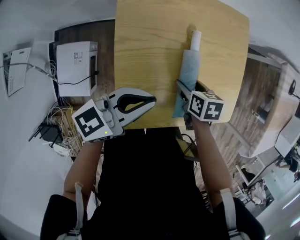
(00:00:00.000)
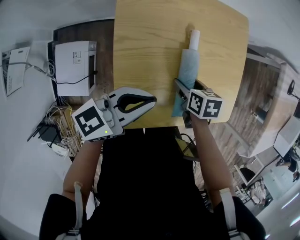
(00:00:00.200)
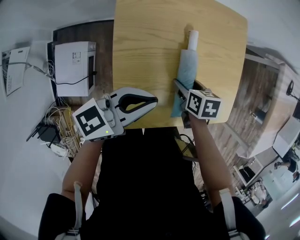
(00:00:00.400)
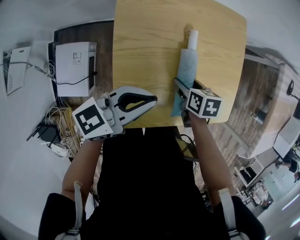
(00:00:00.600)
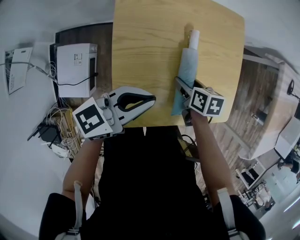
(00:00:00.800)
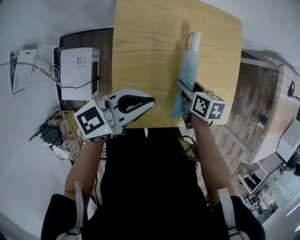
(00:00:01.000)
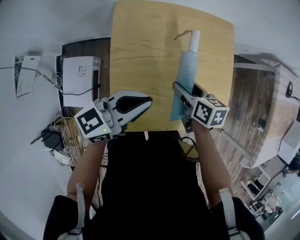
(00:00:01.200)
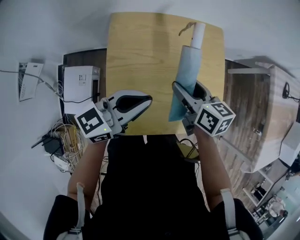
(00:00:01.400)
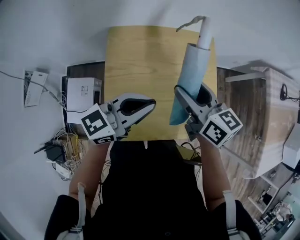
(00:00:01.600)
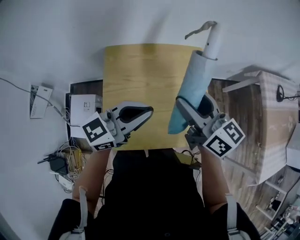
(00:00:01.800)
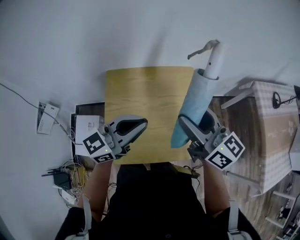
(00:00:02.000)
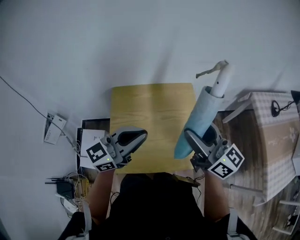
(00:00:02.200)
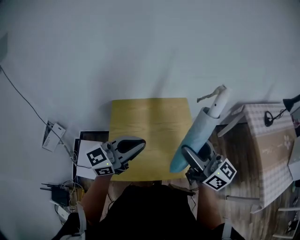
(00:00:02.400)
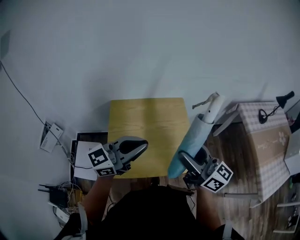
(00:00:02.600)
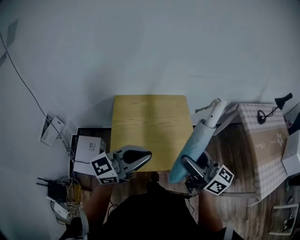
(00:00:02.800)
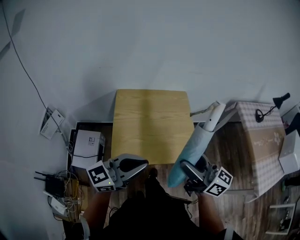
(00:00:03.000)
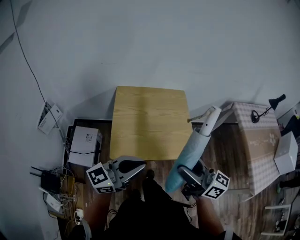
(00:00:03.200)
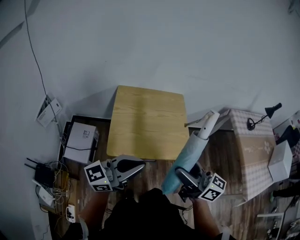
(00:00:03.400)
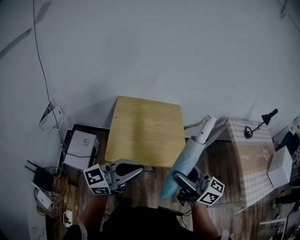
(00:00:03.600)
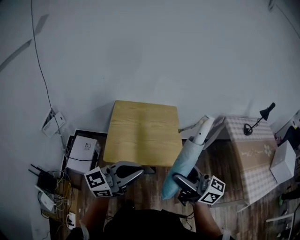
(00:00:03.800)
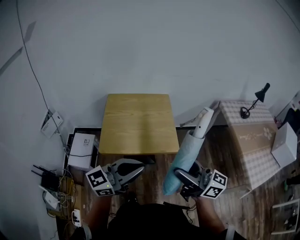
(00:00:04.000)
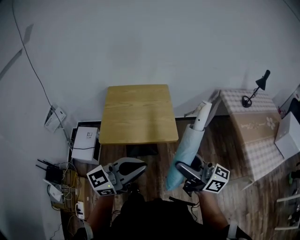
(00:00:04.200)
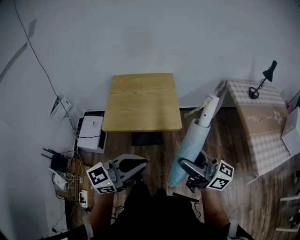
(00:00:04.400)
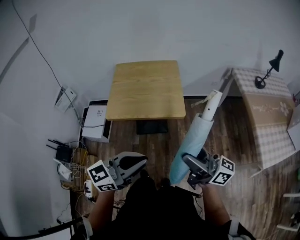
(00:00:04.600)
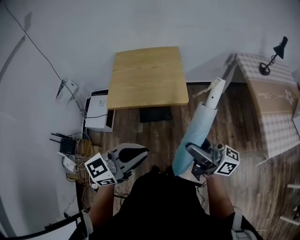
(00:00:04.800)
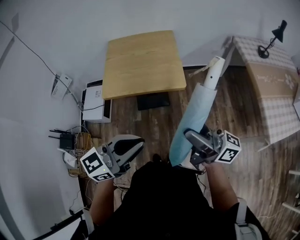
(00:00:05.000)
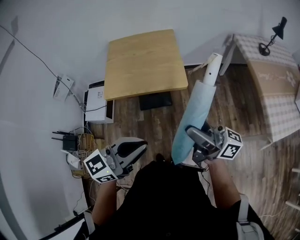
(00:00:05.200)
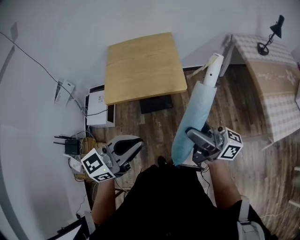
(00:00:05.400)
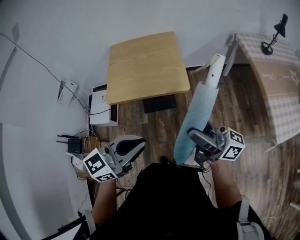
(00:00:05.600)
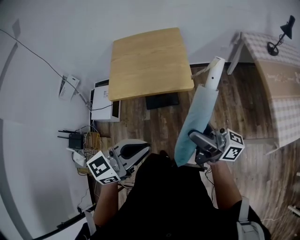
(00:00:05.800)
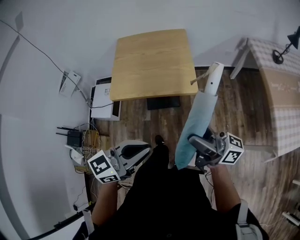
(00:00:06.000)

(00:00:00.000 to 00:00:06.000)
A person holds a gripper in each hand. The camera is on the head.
00:00:00.000 - 00:00:01.600: The right gripper heads upward, covering some 25 cm, and tips its fingers upward by some 50 degrees. The left gripper travels upward and to the right by approximately 15 cm.
00:00:01.600 - 00:00:03.000: The right gripper is displaced backward, upward and to the right by about 35 cm, and rotates some 30 degrees. The left gripper shifts some 25 cm backward and upward.
00:00:03.000 - 00:00:04.400: The grippers both shift backward and to the right by approximately 30 cm.
00:00:04.400 - 00:00:06.000: The two grippers go approximately 5 cm downward. The right gripper rotates roughly 20 degrees.

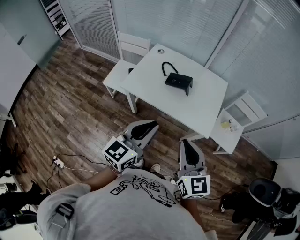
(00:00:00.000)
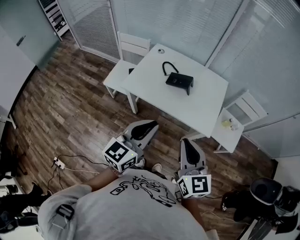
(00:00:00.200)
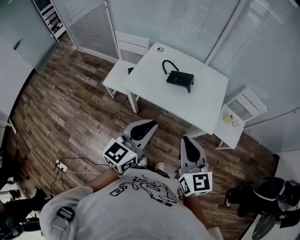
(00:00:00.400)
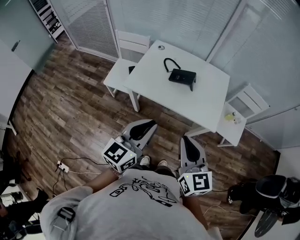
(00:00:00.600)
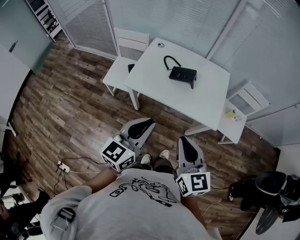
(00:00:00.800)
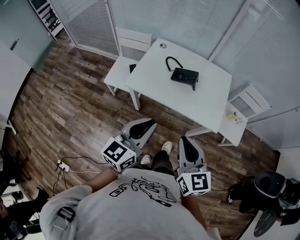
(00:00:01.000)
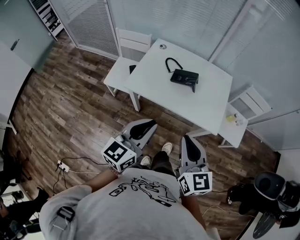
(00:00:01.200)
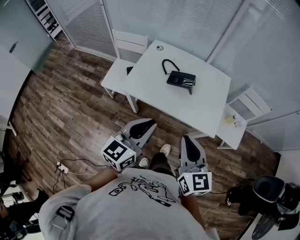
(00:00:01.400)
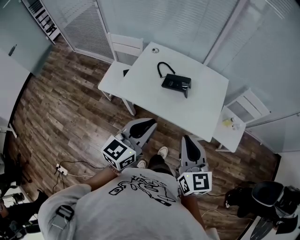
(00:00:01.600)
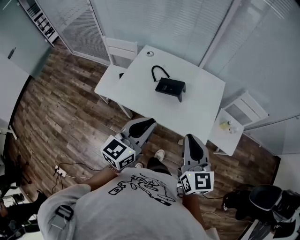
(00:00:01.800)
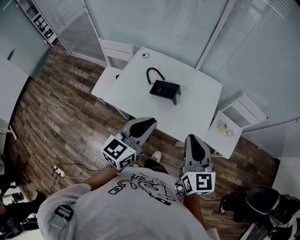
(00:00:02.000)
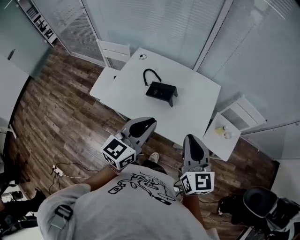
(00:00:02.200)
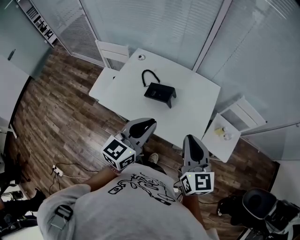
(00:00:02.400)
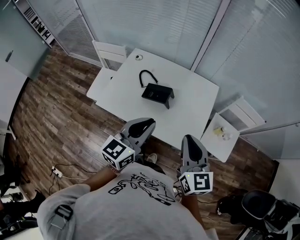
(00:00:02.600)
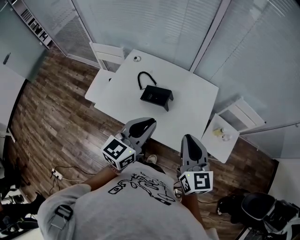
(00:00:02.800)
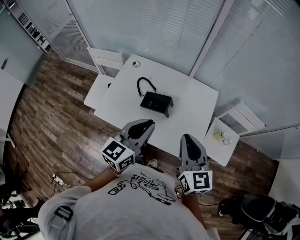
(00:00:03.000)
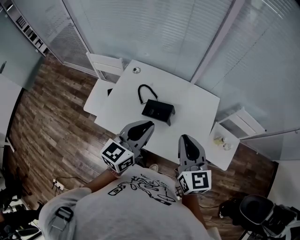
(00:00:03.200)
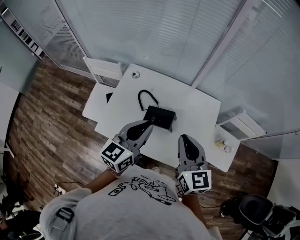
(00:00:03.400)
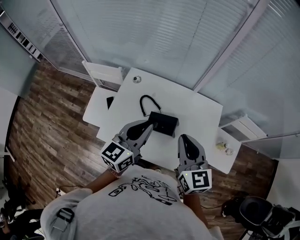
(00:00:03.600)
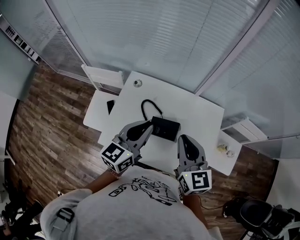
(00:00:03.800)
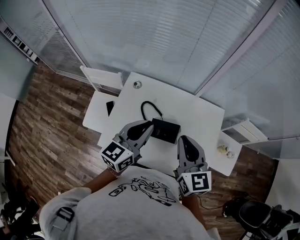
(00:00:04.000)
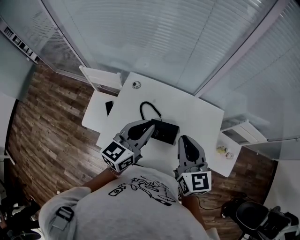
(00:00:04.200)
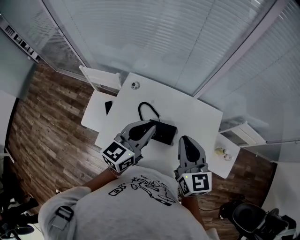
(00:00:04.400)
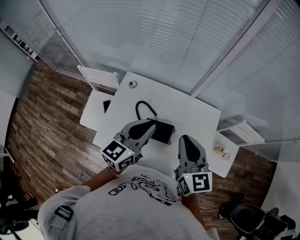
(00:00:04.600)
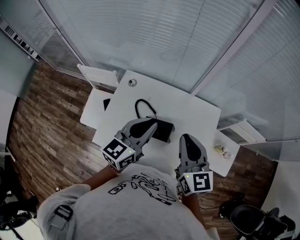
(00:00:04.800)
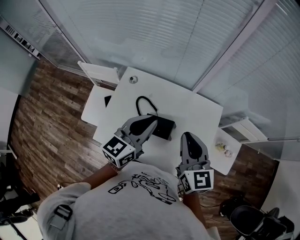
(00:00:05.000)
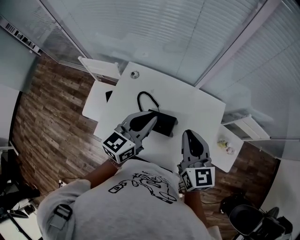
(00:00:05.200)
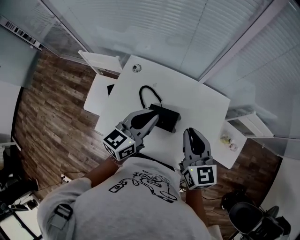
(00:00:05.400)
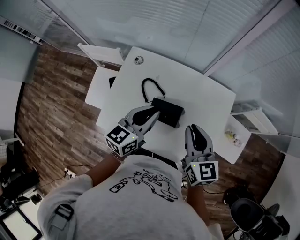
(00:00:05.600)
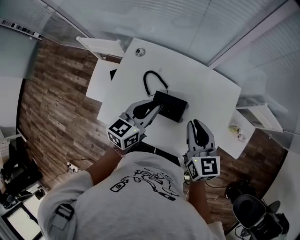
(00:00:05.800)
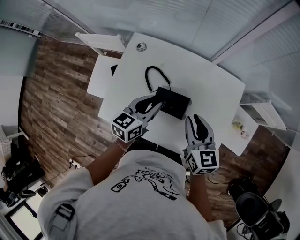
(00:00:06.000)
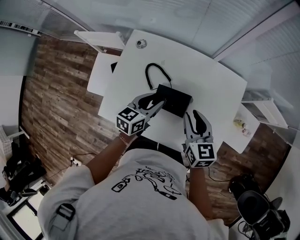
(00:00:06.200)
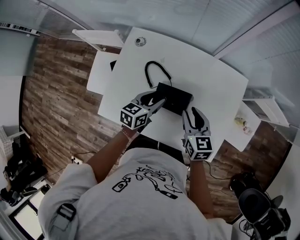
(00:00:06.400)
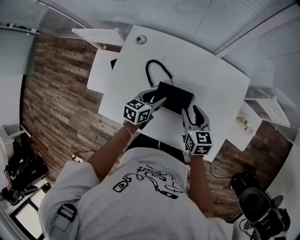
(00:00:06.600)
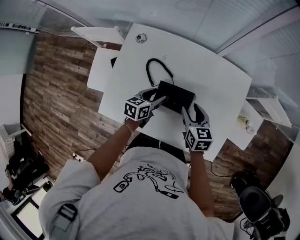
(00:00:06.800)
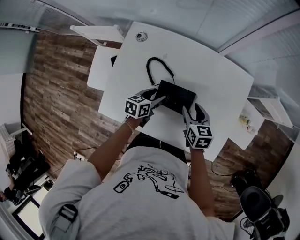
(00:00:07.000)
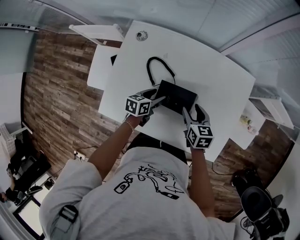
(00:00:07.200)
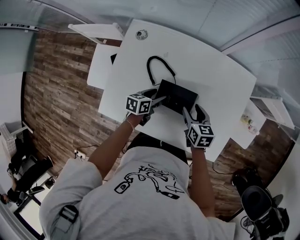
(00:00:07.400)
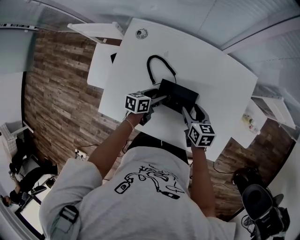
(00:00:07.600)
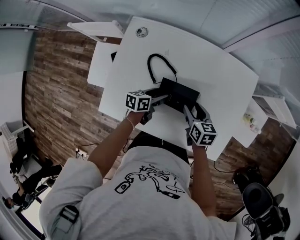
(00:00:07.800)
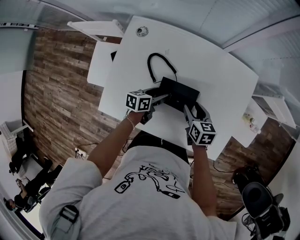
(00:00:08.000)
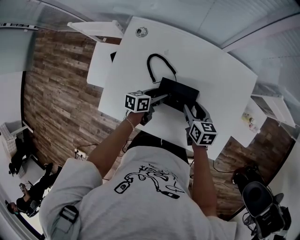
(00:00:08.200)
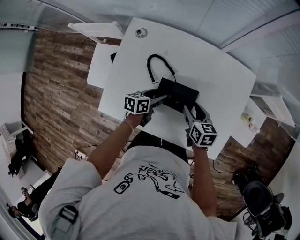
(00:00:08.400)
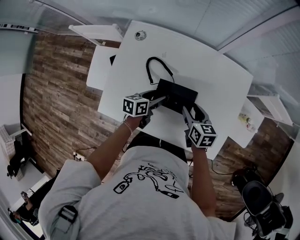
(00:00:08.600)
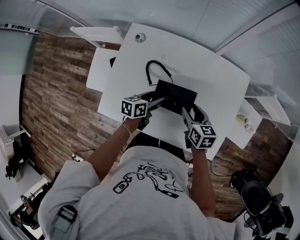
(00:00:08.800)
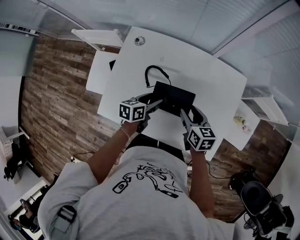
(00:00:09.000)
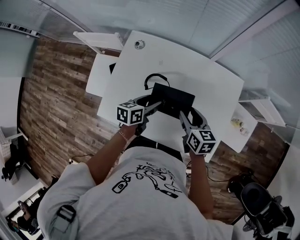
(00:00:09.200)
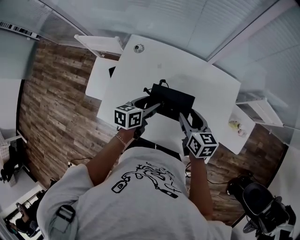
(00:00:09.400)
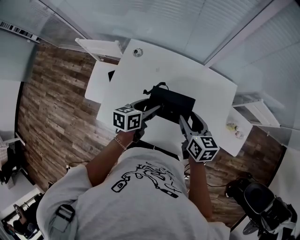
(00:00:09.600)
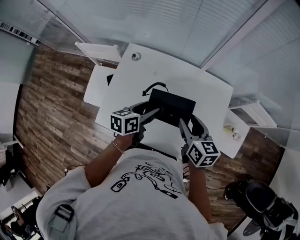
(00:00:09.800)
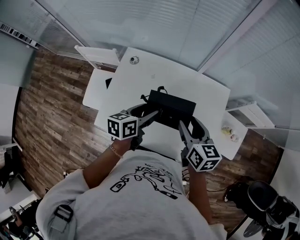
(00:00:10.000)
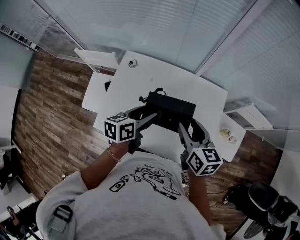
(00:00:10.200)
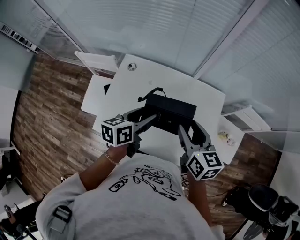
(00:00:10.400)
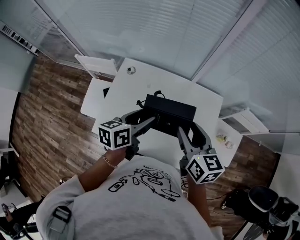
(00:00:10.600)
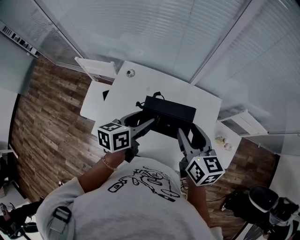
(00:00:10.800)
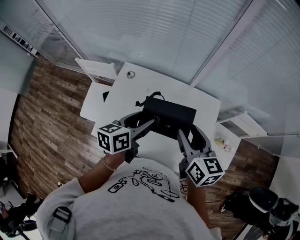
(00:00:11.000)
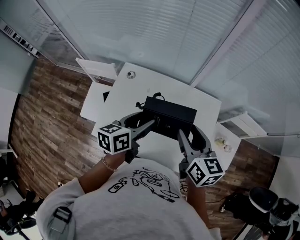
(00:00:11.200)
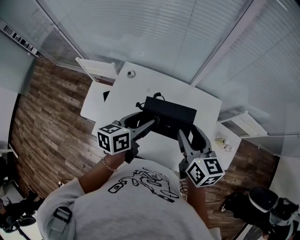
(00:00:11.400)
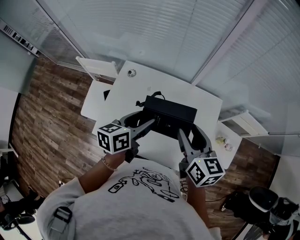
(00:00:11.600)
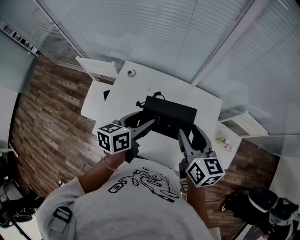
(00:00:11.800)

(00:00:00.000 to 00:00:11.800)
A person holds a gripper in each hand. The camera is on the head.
00:00:00.000 - 00:00:01.400: The right gripper moves forward, some 5 cm. Meanwhile the left gripper moves forward and to the left, some 5 cm.
00:00:01.400 - 00:00:03.000: Both grippers move forward and to the right, about 25 cm.
00:00:03.000 - 00:00:04.400: Both grippers move forward and to the left, approximately 20 cm.
00:00:04.400 - 00:00:06.000: The two grippers go roughly 15 cm downward.
00:00:06.000 - 00:00:07.400: The grippers both shift downward by approximately 20 cm. The left gripper turns by approximately 30 degrees, and opens its fingers, while the right gripper turns by approximately 20 degrees, and opens.
00:00:07.400 - 00:00:08.800: Both grippers move upward, roughly 5 cm.
00:00:08.800 - 00:00:10.400: Both grippers travel together upward, roughly 25 cm.
00:00:10.400 - 00:00:11.800: The grippers make only small movements.

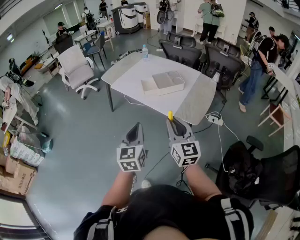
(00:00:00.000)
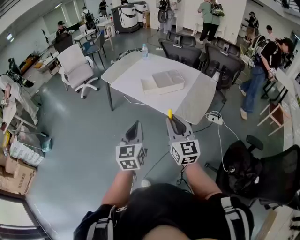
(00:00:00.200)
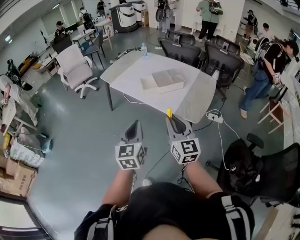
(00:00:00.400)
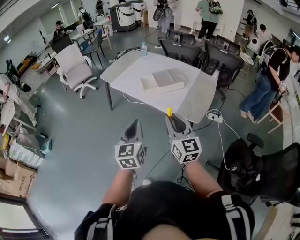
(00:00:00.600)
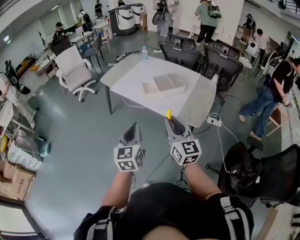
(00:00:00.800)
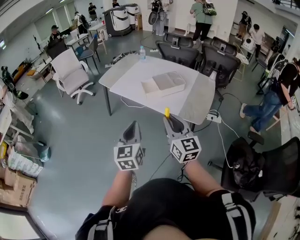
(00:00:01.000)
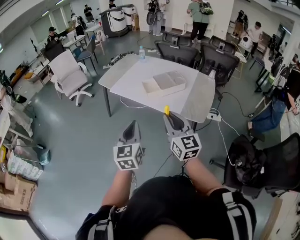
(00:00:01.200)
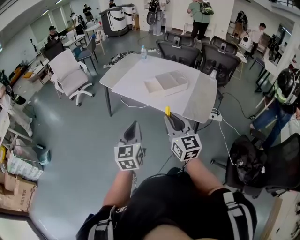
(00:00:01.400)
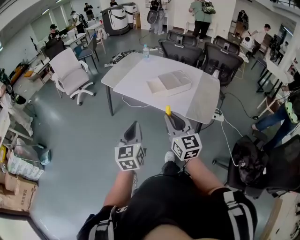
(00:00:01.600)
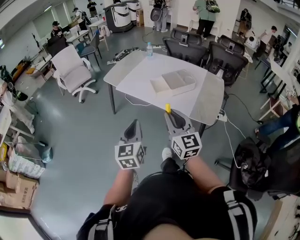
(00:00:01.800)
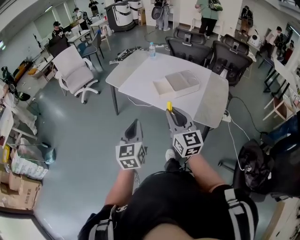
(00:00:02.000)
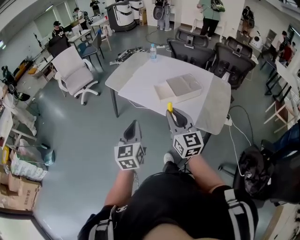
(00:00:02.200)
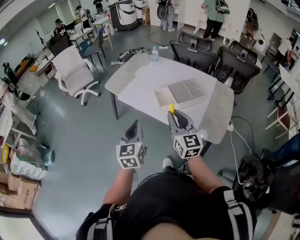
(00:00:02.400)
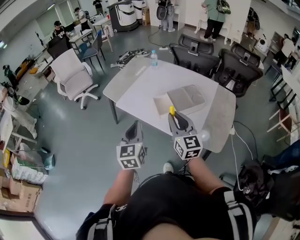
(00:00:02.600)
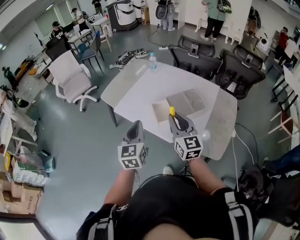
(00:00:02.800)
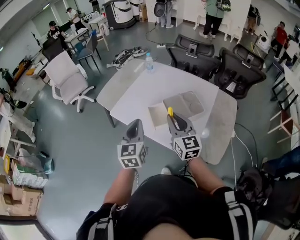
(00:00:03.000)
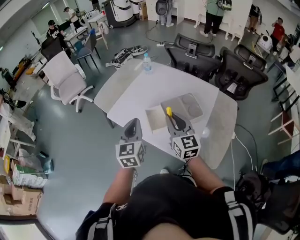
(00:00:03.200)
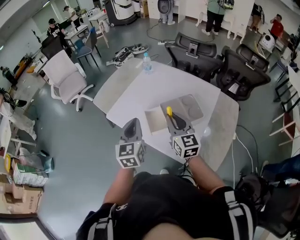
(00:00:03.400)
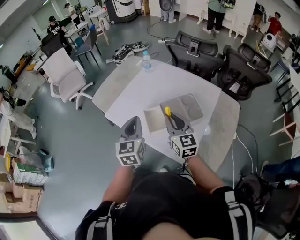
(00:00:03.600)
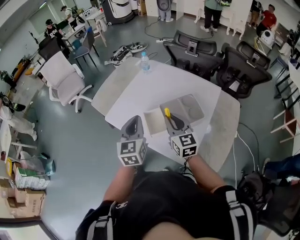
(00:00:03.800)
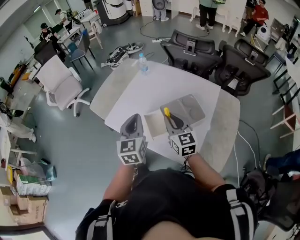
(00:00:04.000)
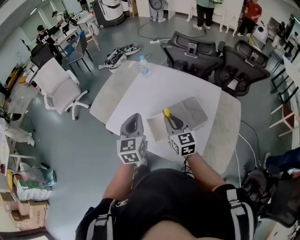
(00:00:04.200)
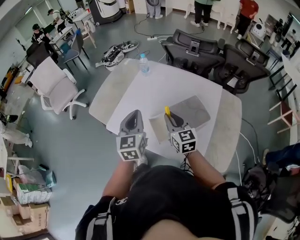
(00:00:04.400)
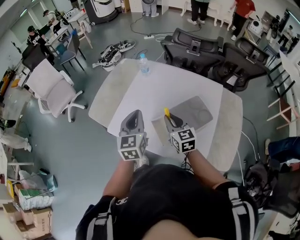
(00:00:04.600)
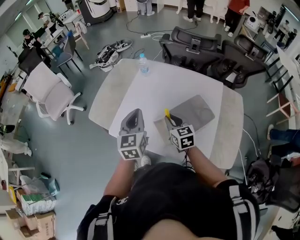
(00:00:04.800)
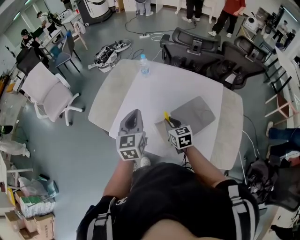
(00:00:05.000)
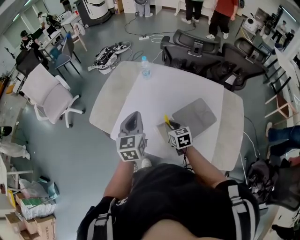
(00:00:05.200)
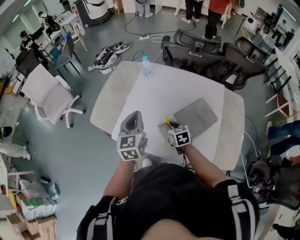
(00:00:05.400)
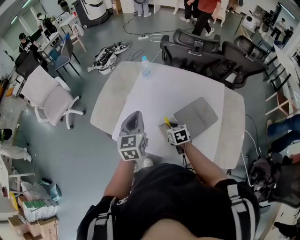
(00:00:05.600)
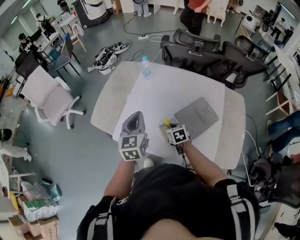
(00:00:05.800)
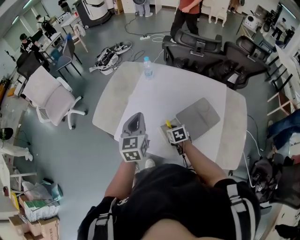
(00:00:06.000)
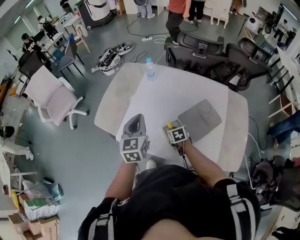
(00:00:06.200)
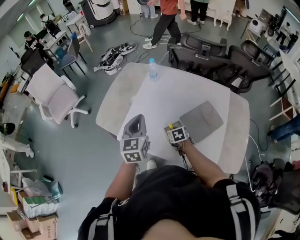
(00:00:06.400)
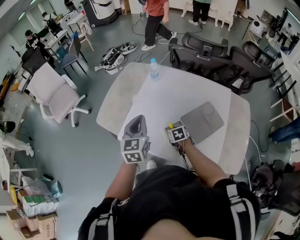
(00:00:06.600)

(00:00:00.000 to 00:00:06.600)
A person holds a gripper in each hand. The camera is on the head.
00:00:00.000 - 00:00:01.600: The grippers both shift to the left and forward by roughly 15 cm.
00:00:01.600 - 00:00:03.200: The pair of grippers is taken forward, roughly 40 cm.
00:00:03.200 - 00:00:05.000: The right gripper moves forward and downward, approximately 25 cm, and changes its angle by about 30 degrees. Meanwhile the left gripper is displaced forward by about 20 cm.
00:00:05.000 - 00:00:06.600: The right gripper moves downward, approximately 15 cm, and rotates roughly 30 degrees.
